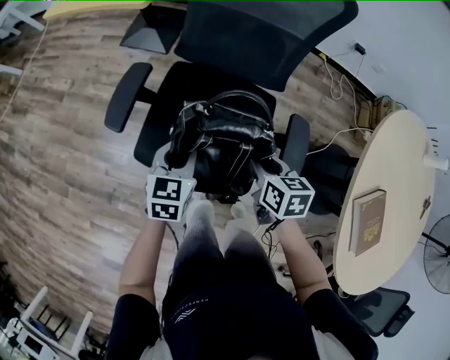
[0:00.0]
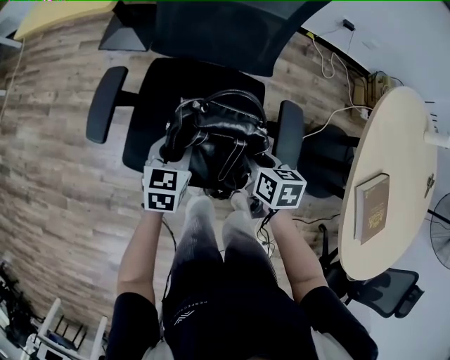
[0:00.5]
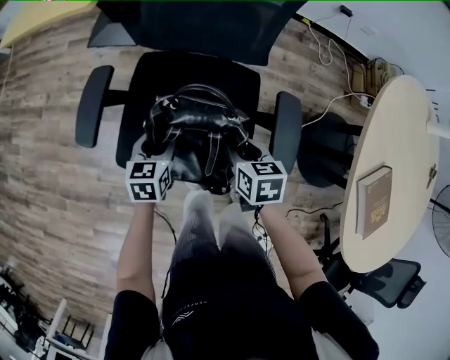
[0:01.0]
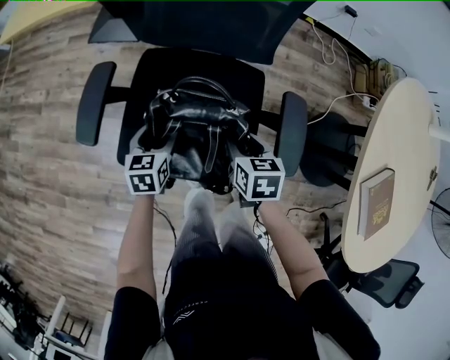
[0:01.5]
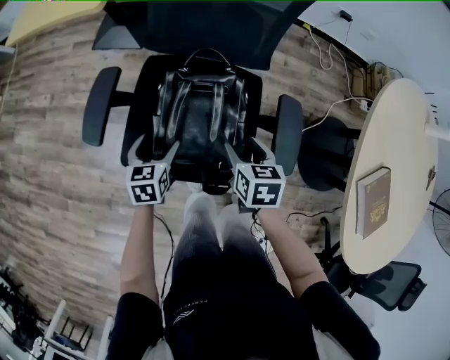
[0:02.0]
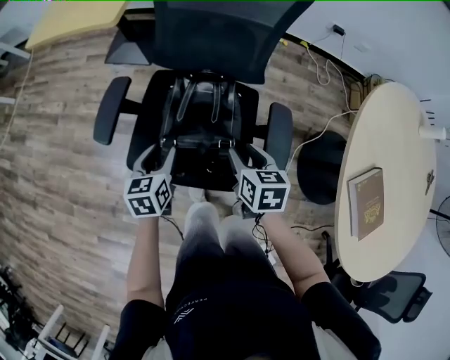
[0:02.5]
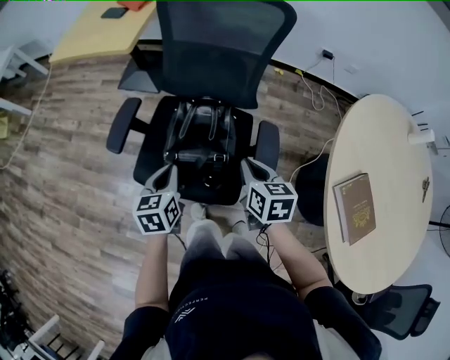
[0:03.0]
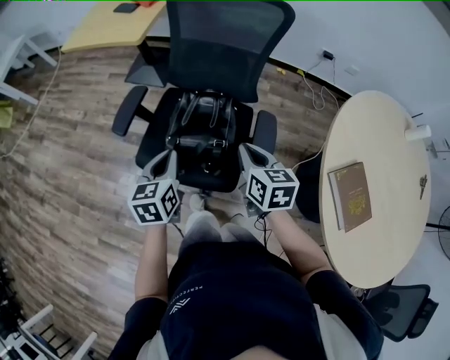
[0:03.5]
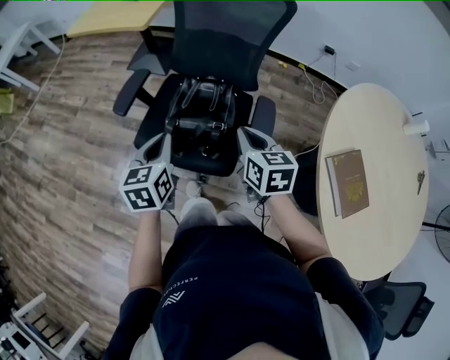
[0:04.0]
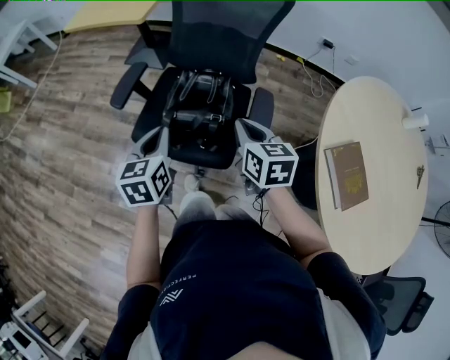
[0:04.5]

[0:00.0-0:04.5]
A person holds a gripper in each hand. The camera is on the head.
0.0 to 2.0 s: The right gripper moves downward, roughly 5 cm, and opens its fingers. Meanwhile the left gripper heads downward, covering approximately 10 cm, and opens its fingers.
2.0 to 4.5 s: Both grippers travel together upward and backward, approximately 25 cm. The right gripper rotates some 20 degrees, and closes up. The left gripper changes its angle by some 20 degrees, and closes.

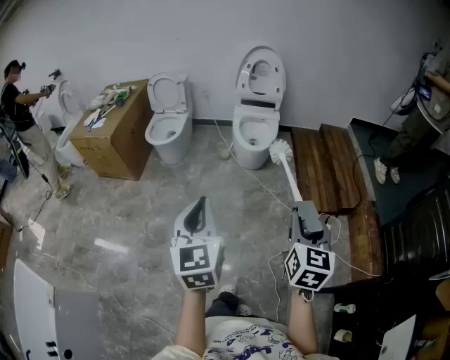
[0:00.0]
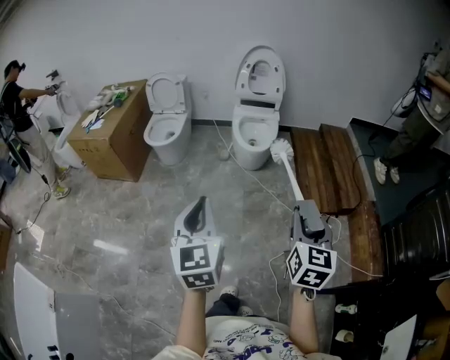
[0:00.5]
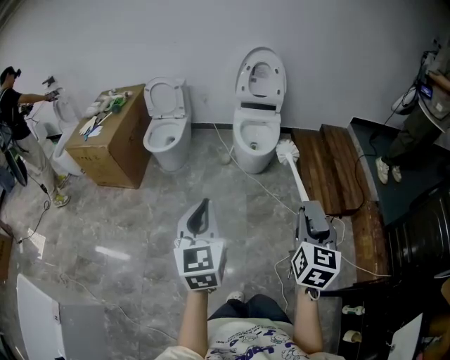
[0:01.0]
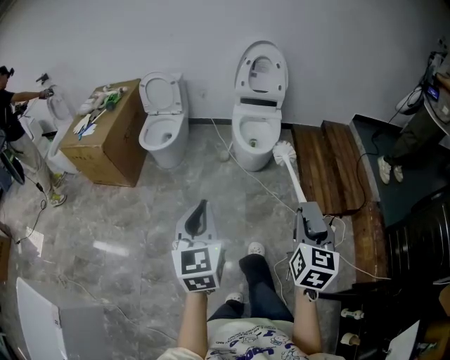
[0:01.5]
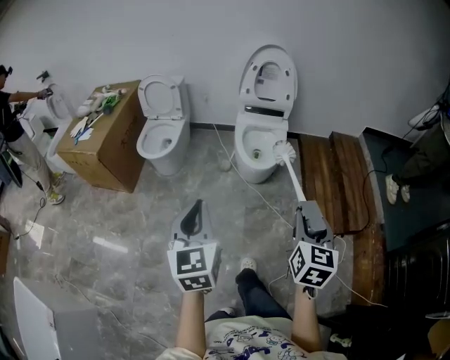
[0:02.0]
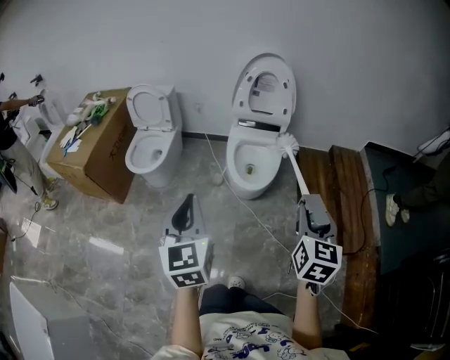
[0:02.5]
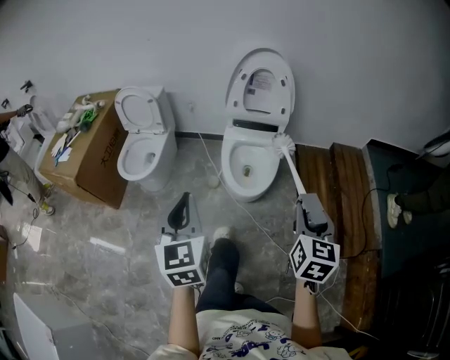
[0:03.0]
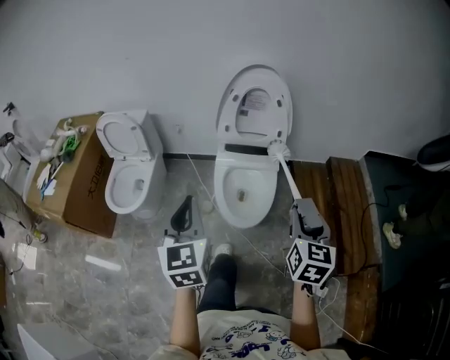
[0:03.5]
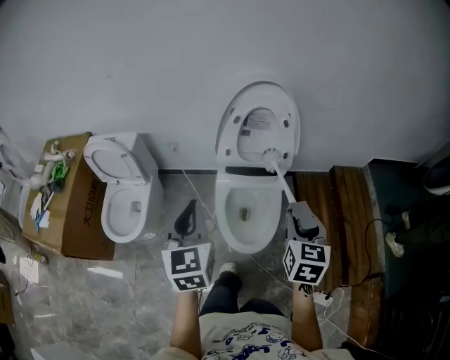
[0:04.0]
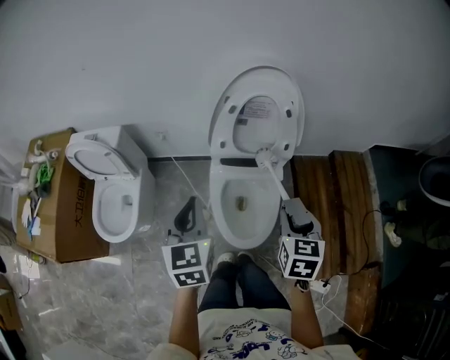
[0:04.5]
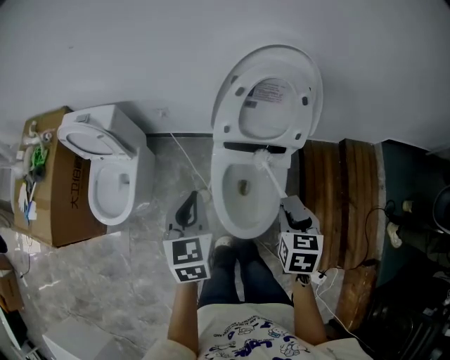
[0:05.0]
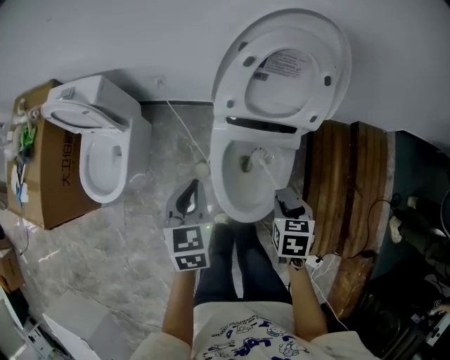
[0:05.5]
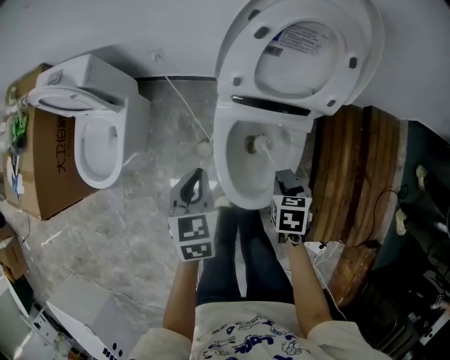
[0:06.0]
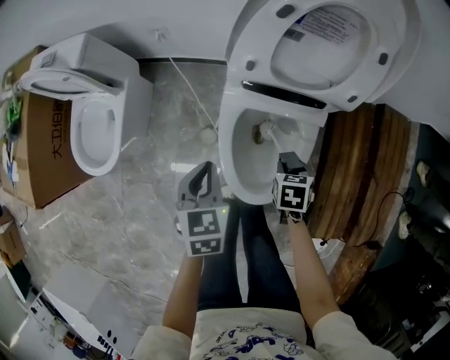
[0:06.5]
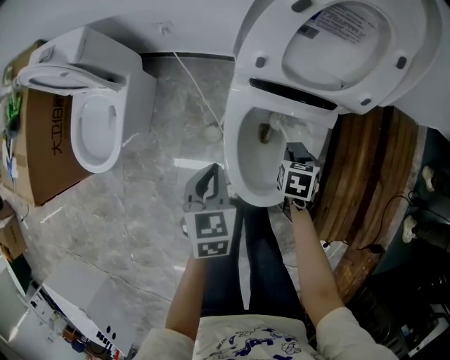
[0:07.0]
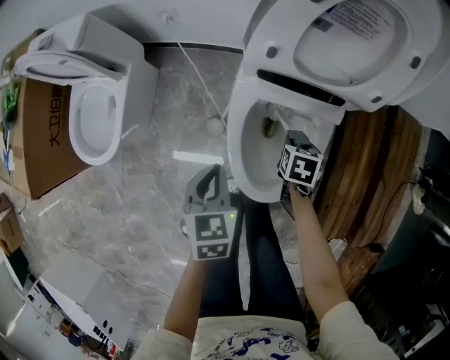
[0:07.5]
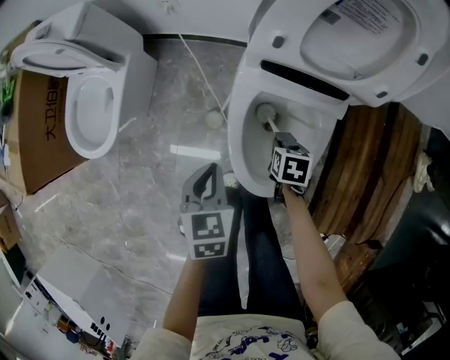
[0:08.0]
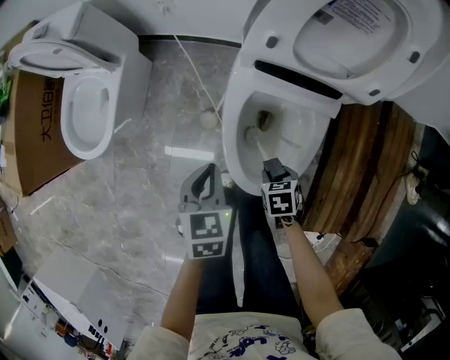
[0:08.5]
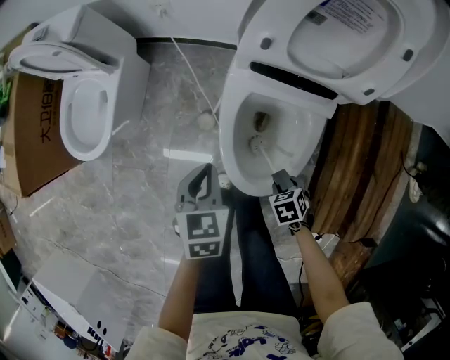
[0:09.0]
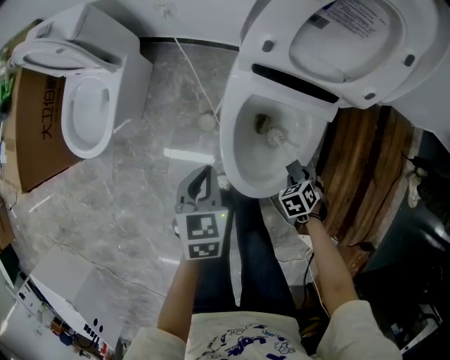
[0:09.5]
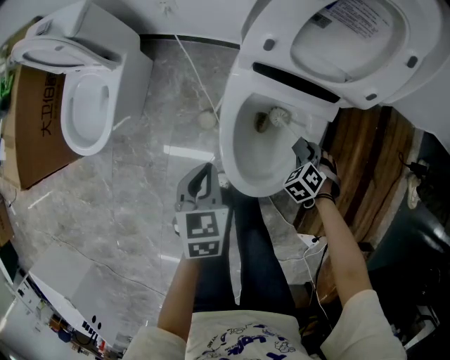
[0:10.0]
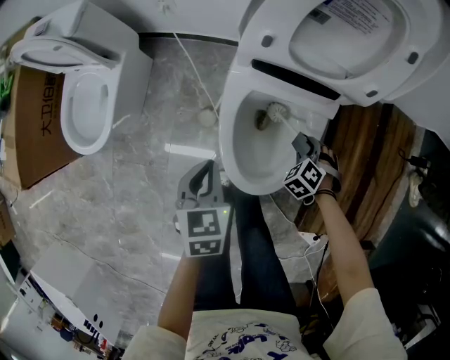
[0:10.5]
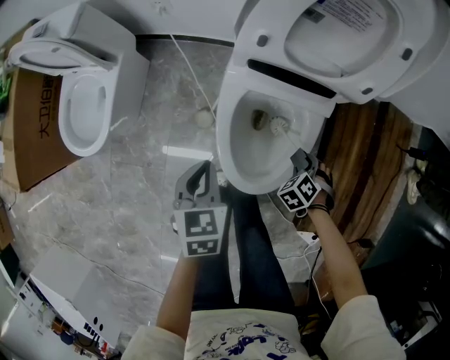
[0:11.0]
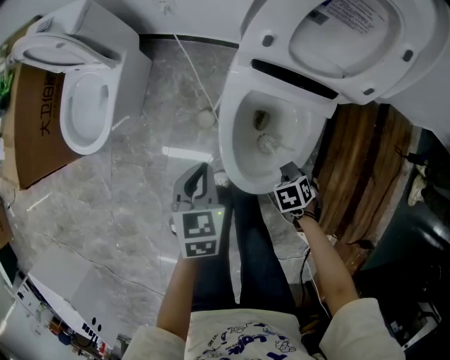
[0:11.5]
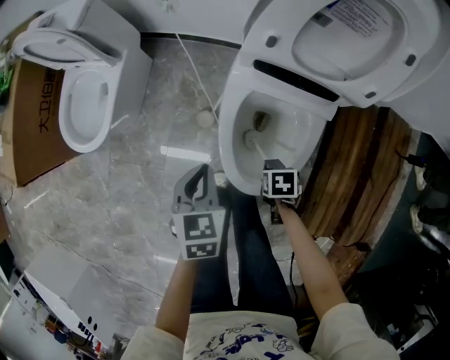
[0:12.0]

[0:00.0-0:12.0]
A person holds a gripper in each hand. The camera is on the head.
0.0 to 2.0 s: Both grippers travel together forward, roughly 25 cm.
2.0 to 4.0 s: The pair of grippers is taken forward, some 60 cm.
4.0 to 6.0 s: The left gripper goes about 30 cm downward and forward, and angles its fingers downward, by approximately 30 degrees. Meanwhile the right gripper is displaced downward by roughly 35 cm, and tilts its fingers about 40 degrees downward.
6.0 to 8.0 s: The left gripper goes some 10 cm downward and backward. Meanwhile the right gripper is displaced downward by roughly 15 cm.
8.0 to 10.0 s: The right gripper changes place by roughly 10 cm, and twists some 60 degrees counterclockwise, seen from behind.
10.0 to 12.0 s: The right gripper ends up some 10 cm from where it was, and rotates around the line of its fingers by roughly 50 degrees, clockwise from behind.

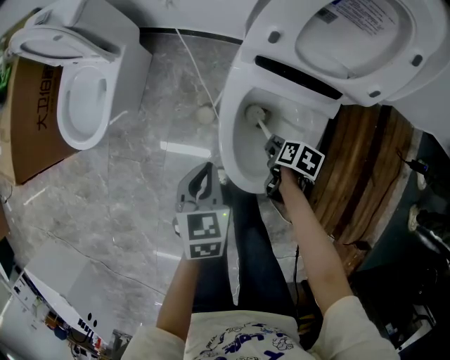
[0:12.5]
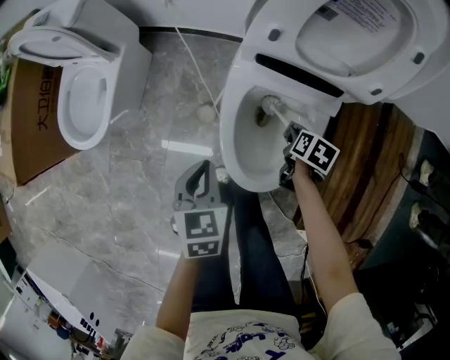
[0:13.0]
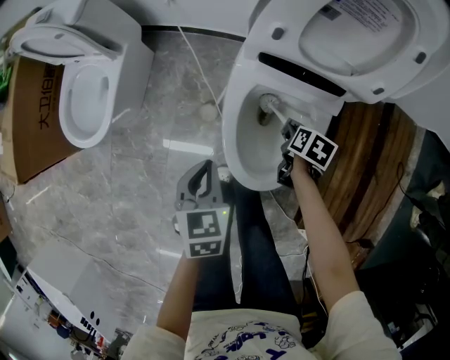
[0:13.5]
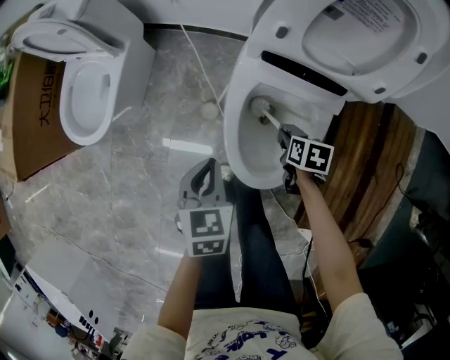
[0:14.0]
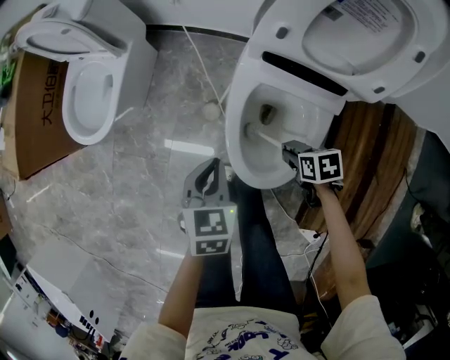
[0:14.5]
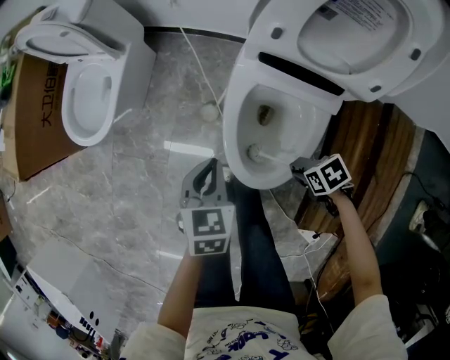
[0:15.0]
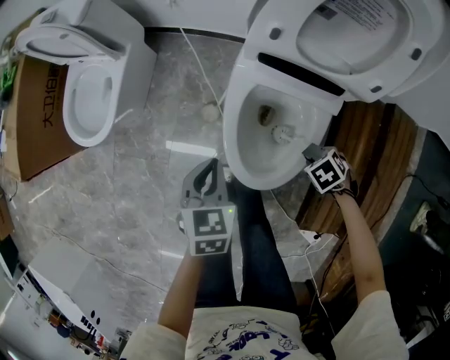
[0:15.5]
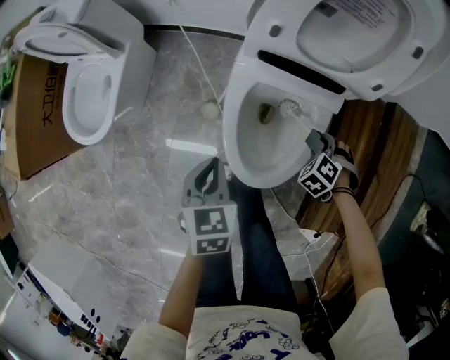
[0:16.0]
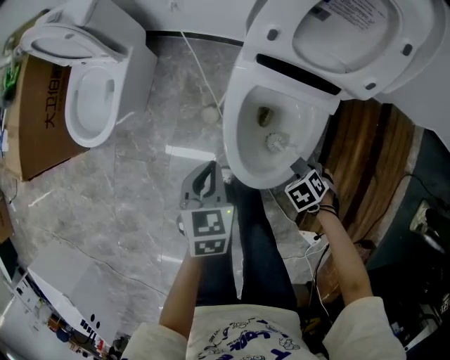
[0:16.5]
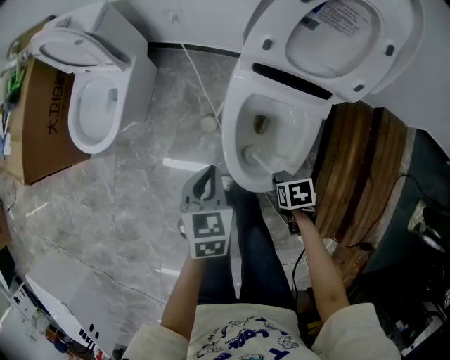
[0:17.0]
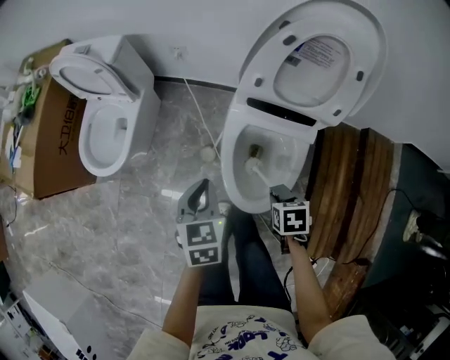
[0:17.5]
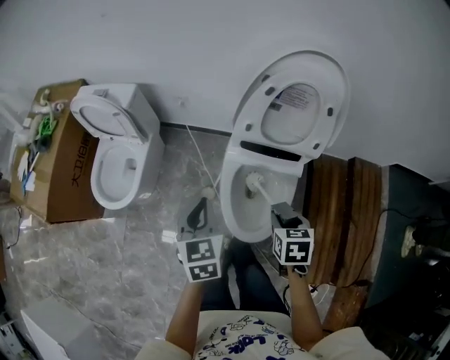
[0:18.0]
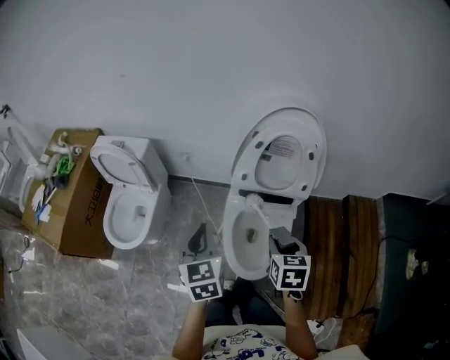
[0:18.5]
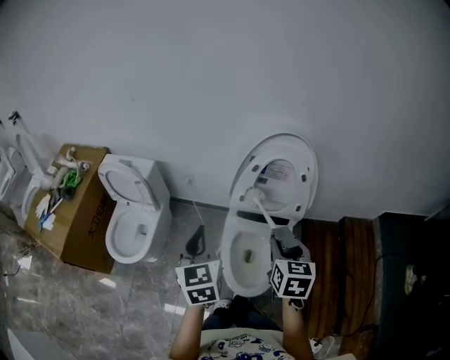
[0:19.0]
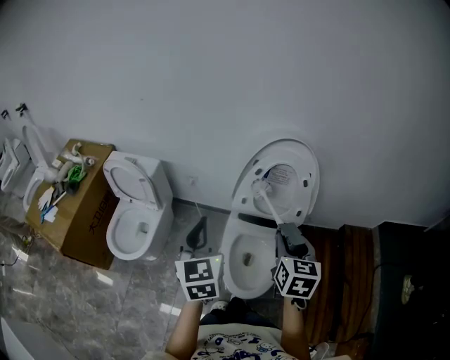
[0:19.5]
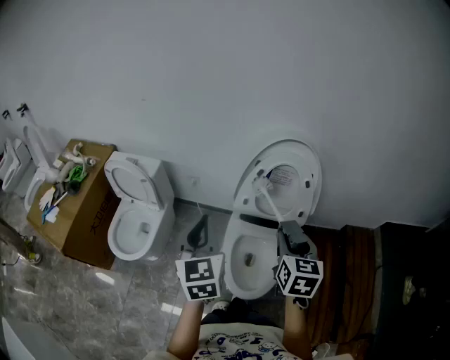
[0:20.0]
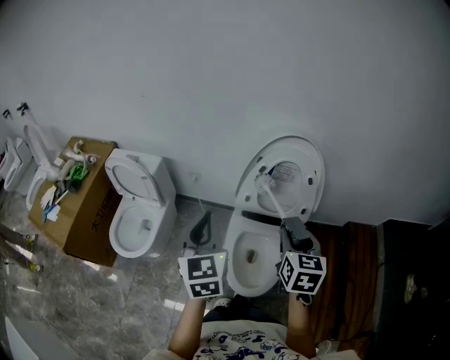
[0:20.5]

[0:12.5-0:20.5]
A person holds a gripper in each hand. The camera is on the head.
12.5 to 14.5 s: The right gripper swivels approximately 40 degrees.
14.5 to 16.5 s: The right gripper ends up approximately 10 cm from where it was, and changes its angle by approximately 40 degrees.
16.5 to 18.5 s: The two grippers go about 30 cm upward. The left gripper rotates about 30 degrees; the right gripper points its fingers some 40 degrees further upward.
18.5 to 20.5 s: The two grippers go about 15 cm upward.

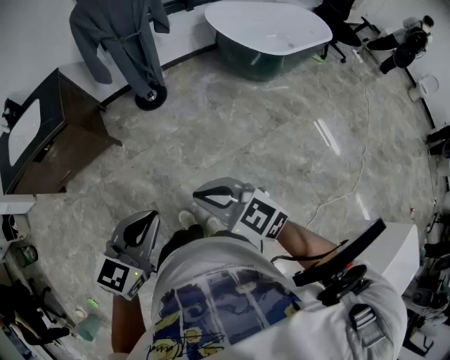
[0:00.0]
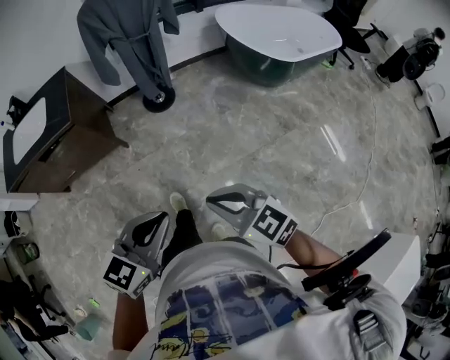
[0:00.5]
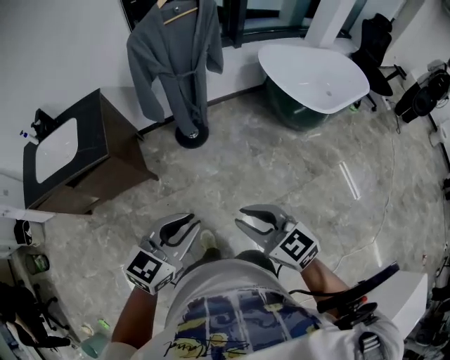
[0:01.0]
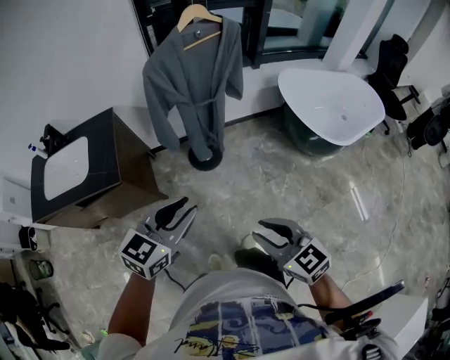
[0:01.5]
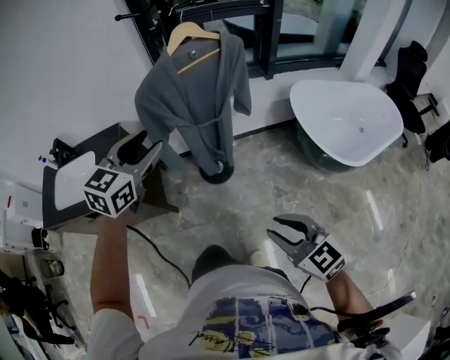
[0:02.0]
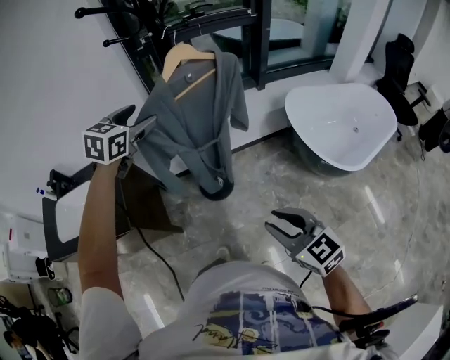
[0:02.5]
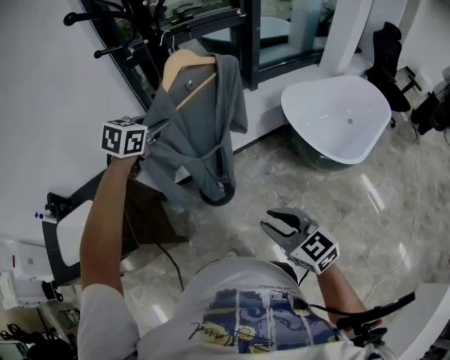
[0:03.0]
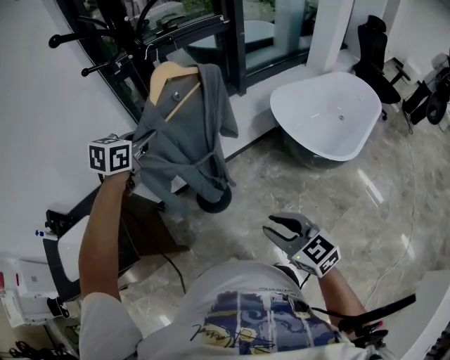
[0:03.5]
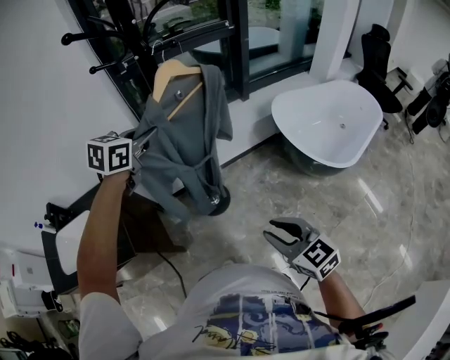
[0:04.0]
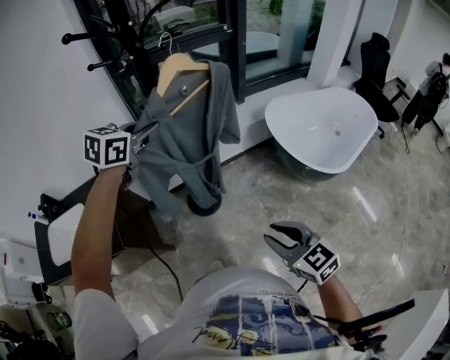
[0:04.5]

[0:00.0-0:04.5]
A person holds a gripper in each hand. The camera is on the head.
0.0 to 2.0 s: The right gripper is displaced forward by roughly 40 cm, and opens up, while the left gripper shifts about 60 cm forward, turns by roughly 20 degrees, and opens its fingers.
2.0 to 4.5 s: The left gripper shifts some 15 cm forward, changes its angle by roughly 20 degrees, and closes up, while the right gripper shifts approximately 5 cm forward.
